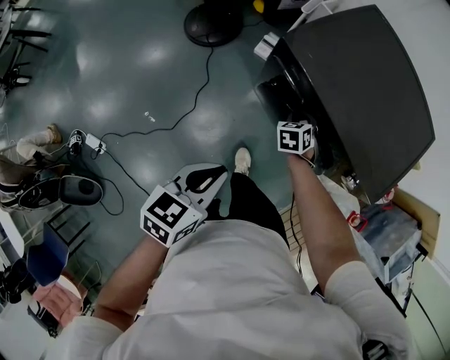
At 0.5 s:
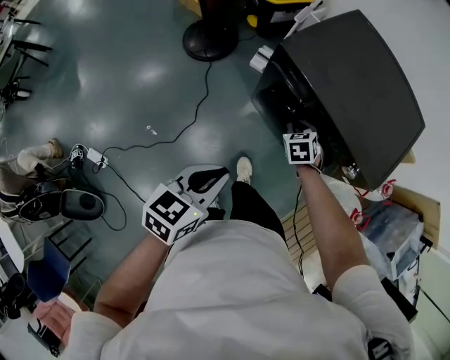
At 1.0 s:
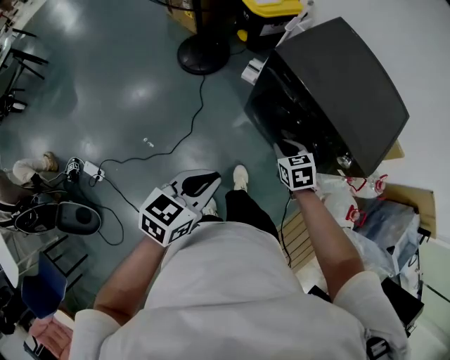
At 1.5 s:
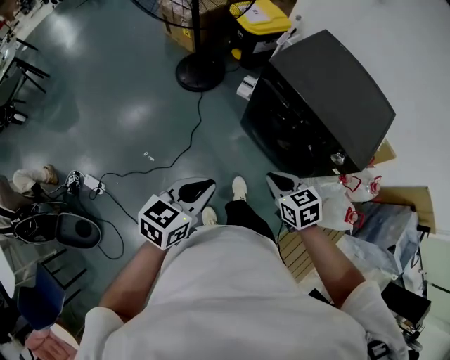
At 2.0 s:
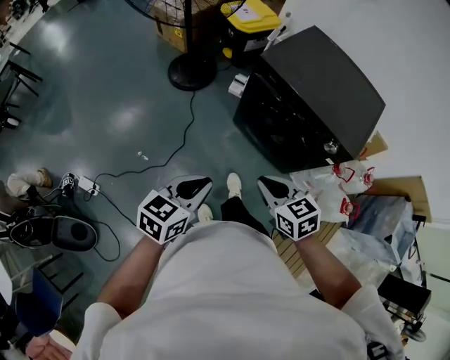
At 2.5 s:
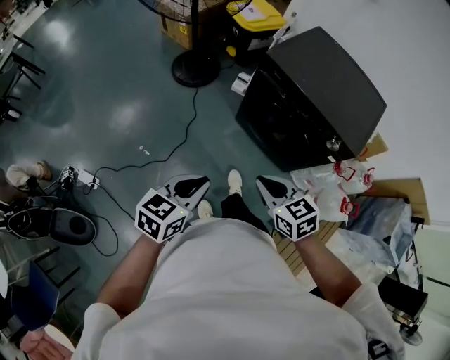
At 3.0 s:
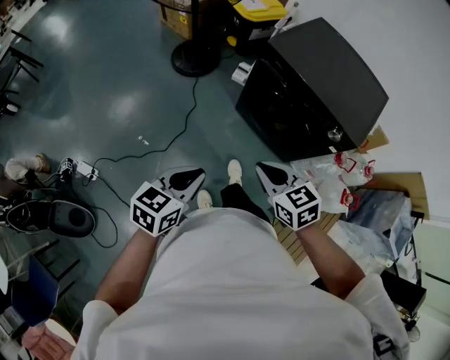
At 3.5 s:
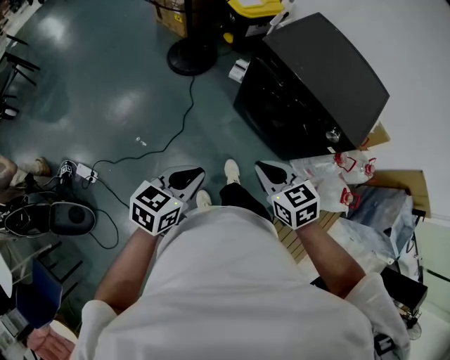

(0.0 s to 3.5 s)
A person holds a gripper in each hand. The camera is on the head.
0.0 s - 2.0 s: The right gripper shifts by about 40 cm, and turns by about 40 degrees; the left gripper moves about 20 cm.
2.0 s - 3.5 s: The grippers stay close to where they were, moving slightly.

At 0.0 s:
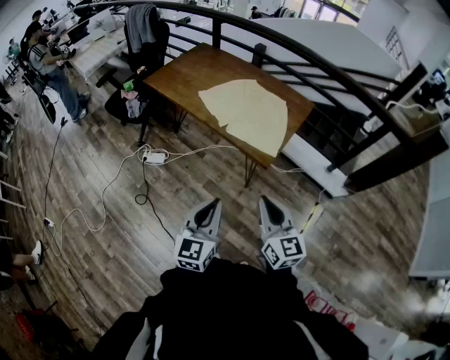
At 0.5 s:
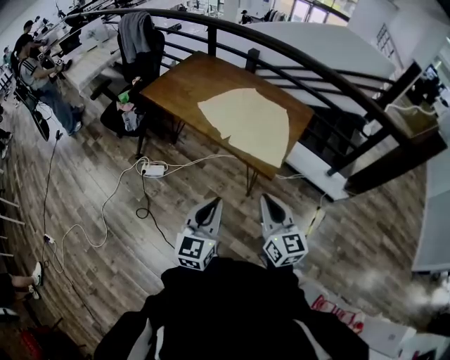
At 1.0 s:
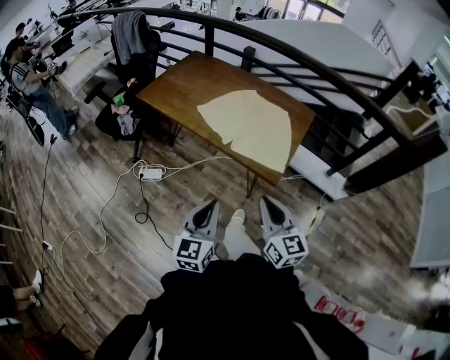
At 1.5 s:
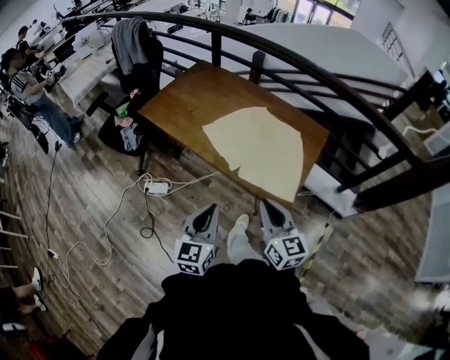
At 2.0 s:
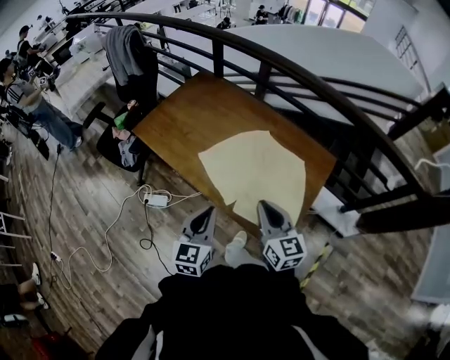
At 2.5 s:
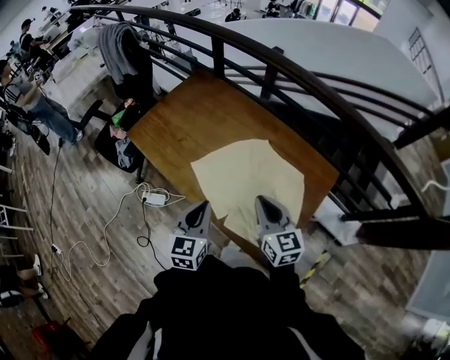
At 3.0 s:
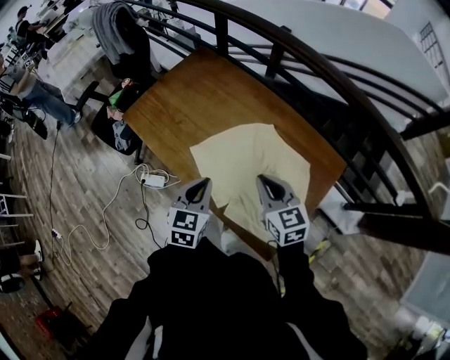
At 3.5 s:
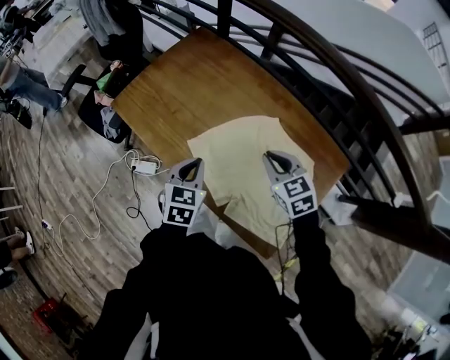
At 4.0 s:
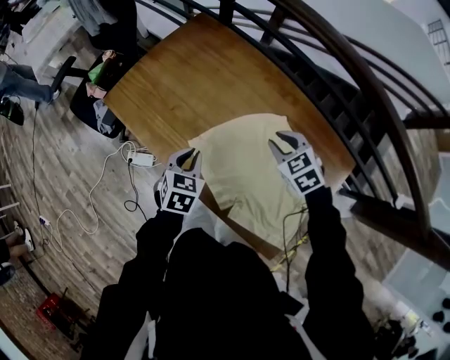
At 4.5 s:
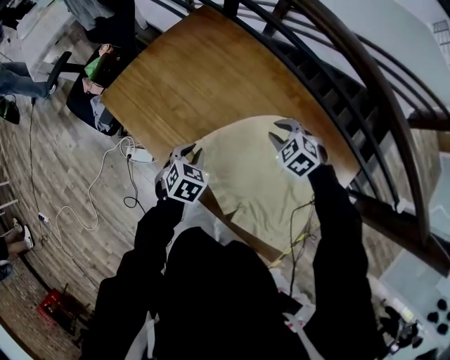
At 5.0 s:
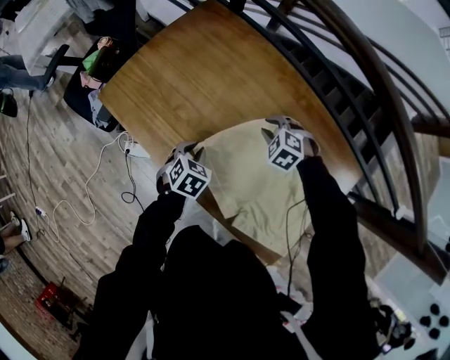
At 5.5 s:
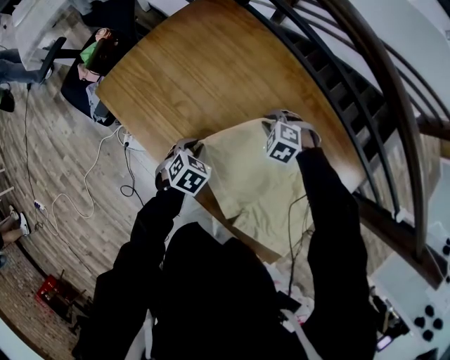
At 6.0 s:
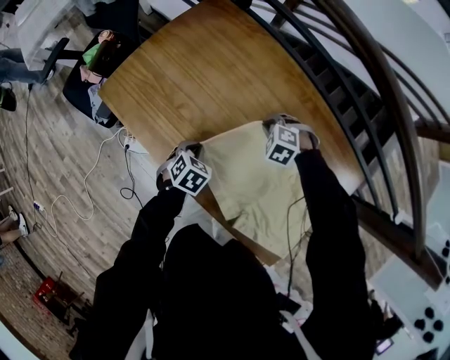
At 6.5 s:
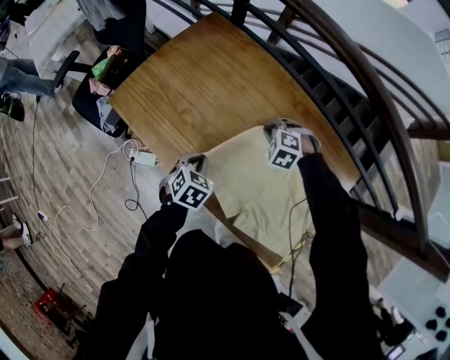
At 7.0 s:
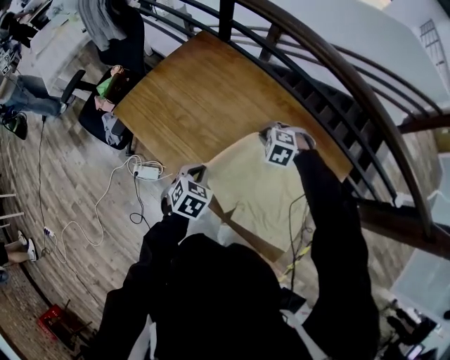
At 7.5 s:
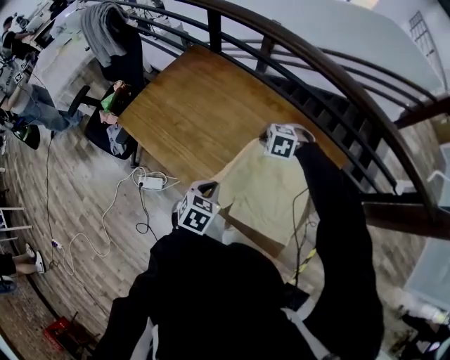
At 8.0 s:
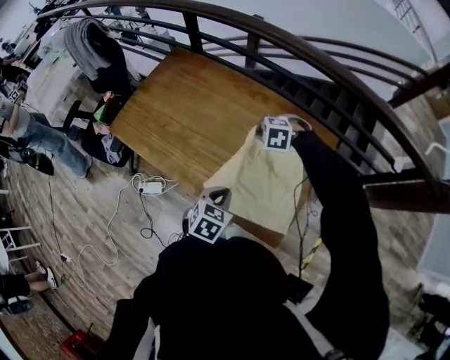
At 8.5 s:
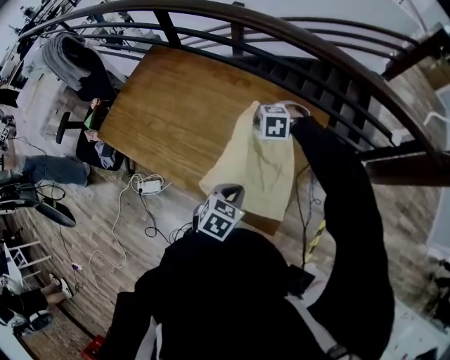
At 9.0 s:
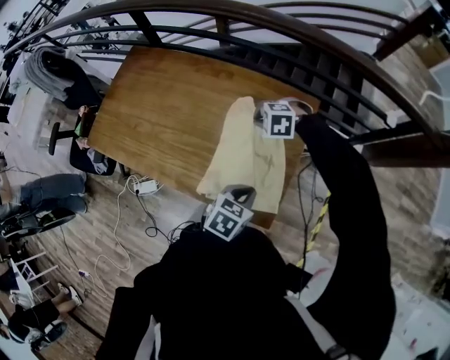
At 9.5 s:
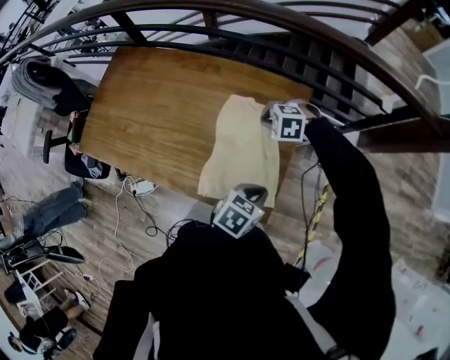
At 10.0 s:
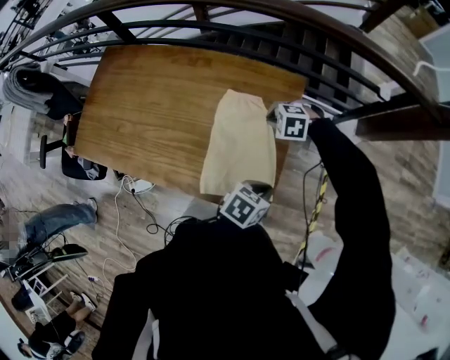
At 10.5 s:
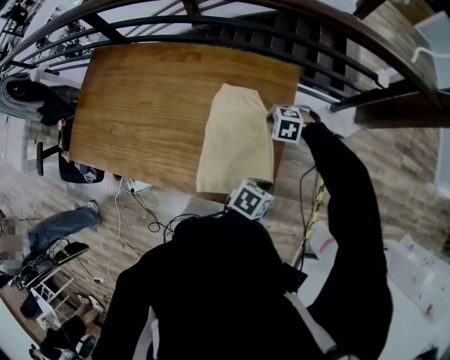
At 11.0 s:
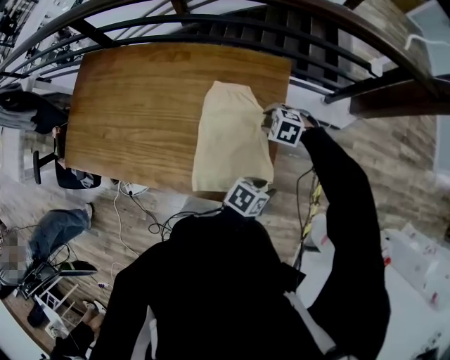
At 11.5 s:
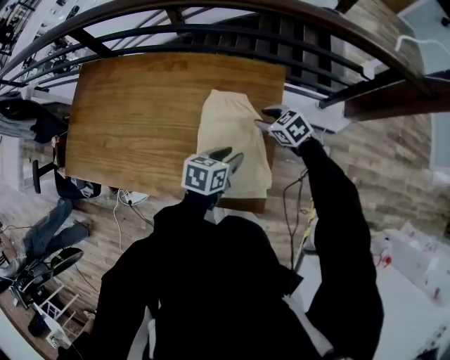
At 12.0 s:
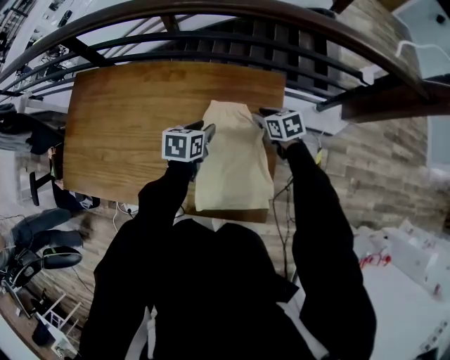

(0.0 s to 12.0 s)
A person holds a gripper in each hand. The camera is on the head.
0.0 s - 2.0 s: Both grippers travel together forward, approximately 40 cm.
2.0 s - 4.0 s: The two grippers go roughly 30 cm forward and downward. The left gripper tips its fingers downward by approximately 30 degrees. Meanwhile the right gripper angles its fingers downward, by some 40 degrees.
4.0 s - 6.0 s: Both grippers move downward, approximately 15 cm. The right gripper changes its angle by about 40 degrees. The left gripper swivels about 20 degrees.
6.0 s - 8.0 s: The right gripper moves approximately 20 cm, while the left gripper ends up about 30 cm from where it was.
8.0 s - 10.0 s: The left gripper changes place by about 25 cm, and swivels approximately 30 degrees, while the right gripper changes place by about 25 cm.
10.0 s - 12.0 s: The left gripper ends up about 30 cm from where it was, and opens. Meanwhile the right gripper shifts by about 10 cm, rotates around the line of its fingers by roughly 70 degrees, clockwise from behind, and opens.

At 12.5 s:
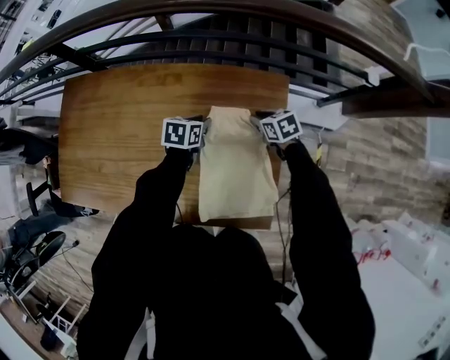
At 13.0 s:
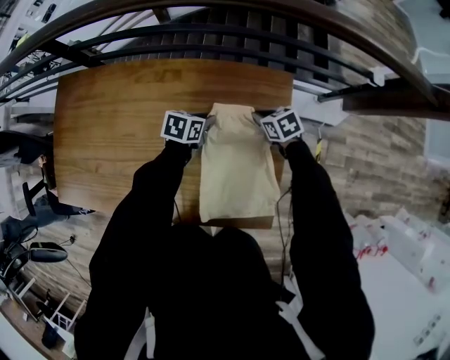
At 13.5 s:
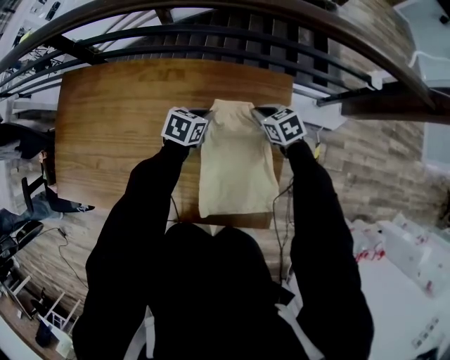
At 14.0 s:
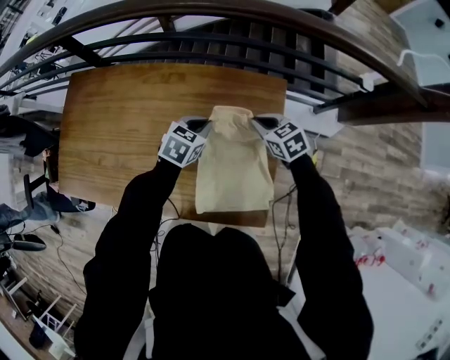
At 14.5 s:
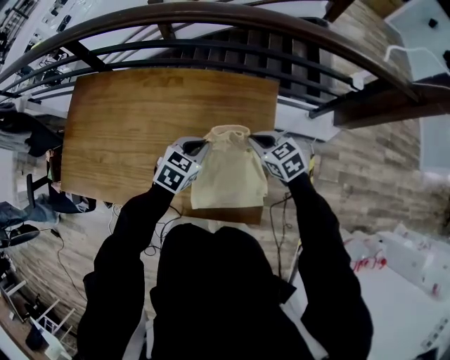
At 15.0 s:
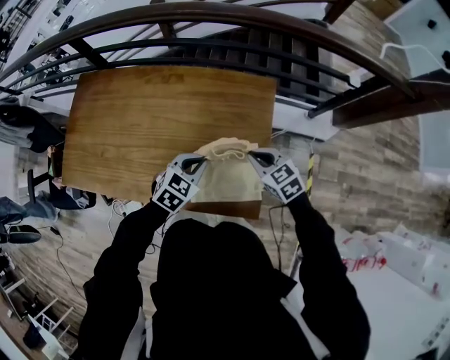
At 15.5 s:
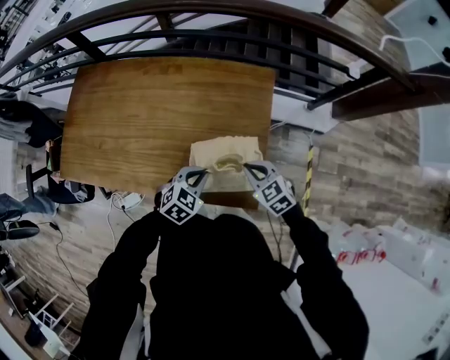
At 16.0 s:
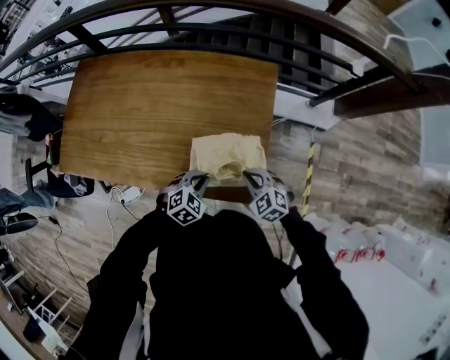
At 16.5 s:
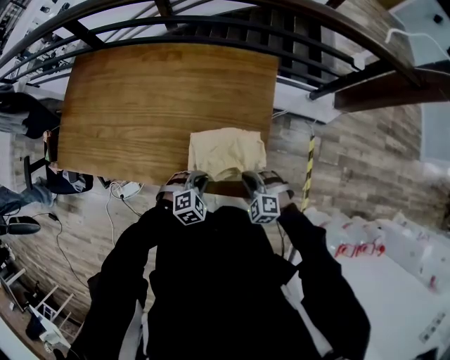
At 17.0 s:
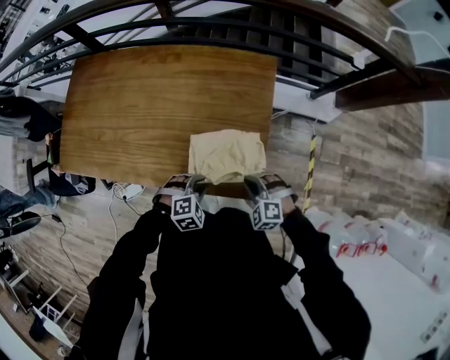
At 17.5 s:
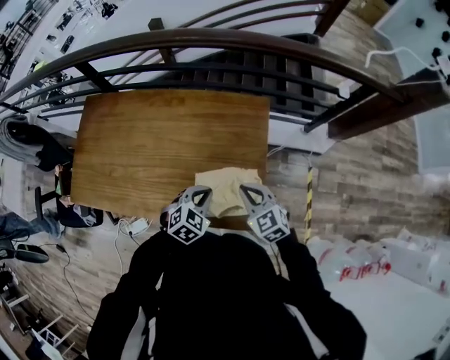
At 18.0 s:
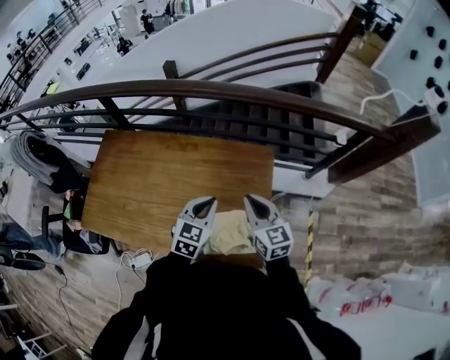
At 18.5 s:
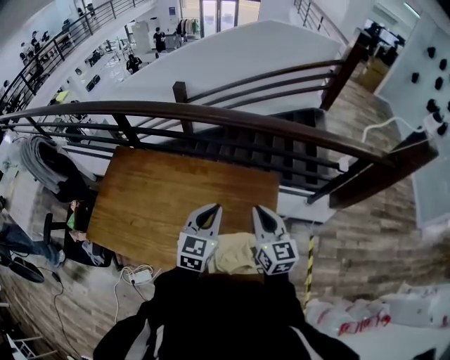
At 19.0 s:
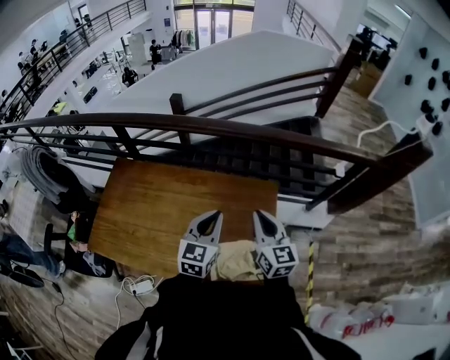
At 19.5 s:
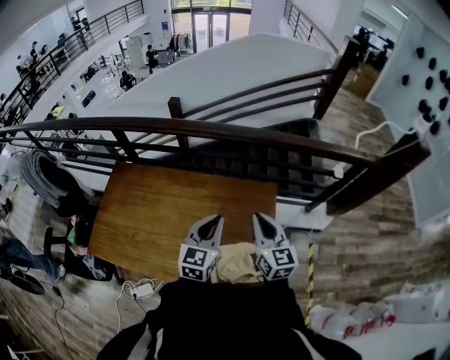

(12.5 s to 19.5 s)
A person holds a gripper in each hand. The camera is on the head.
12.5 s - 14.5 s: Both grippers move backward and upward, some 15 cm. The left gripper rotates about 30 degrees, and closes its fingers.
14.5 s - 16.0 s: The right gripper is displaced backward by about 20 cm, and turns by approximately 20 degrees. The left gripper travels backward and downward by some 20 cm, and turns by roughly 20 degrees.
16.0 s - 17.5 s: Both grippers travel together upward and forward, approximately 15 cm.
17.5 s - 19.5 s: Both grippers move upward and forward, some 25 cm. The right gripper turns by about 40 degrees. Meanwhile the left gripper points its fingers roughly 40 degrees further upward.

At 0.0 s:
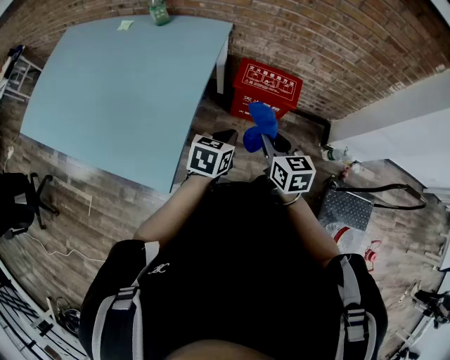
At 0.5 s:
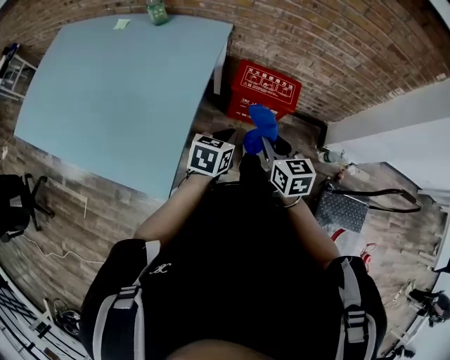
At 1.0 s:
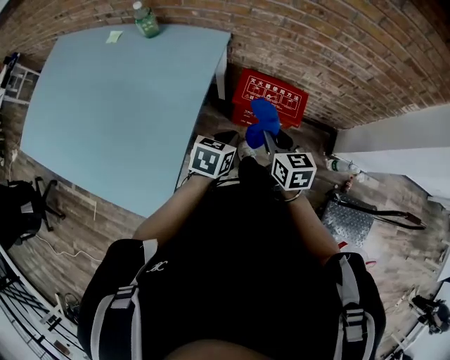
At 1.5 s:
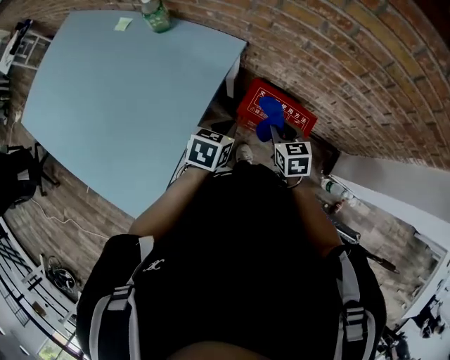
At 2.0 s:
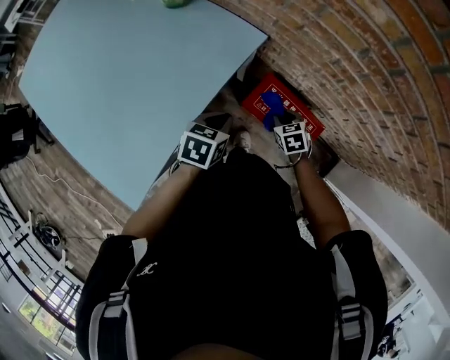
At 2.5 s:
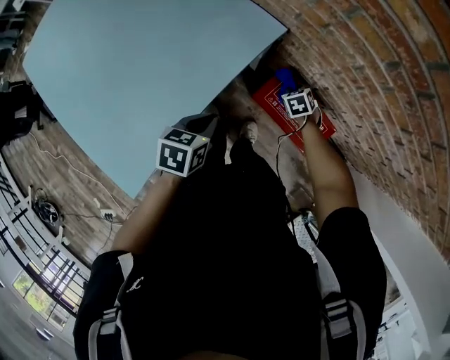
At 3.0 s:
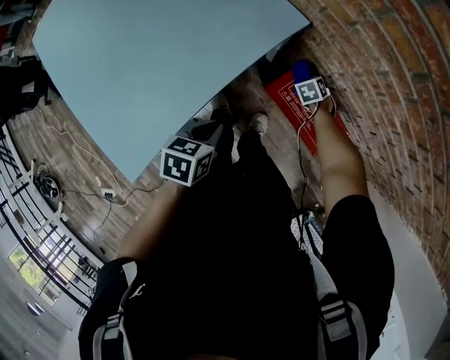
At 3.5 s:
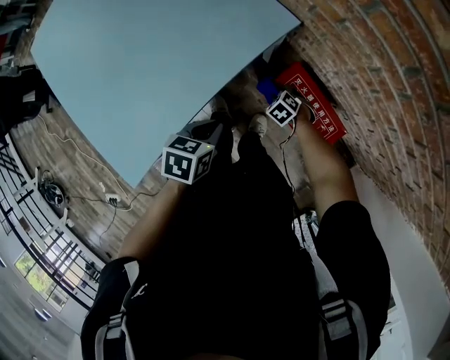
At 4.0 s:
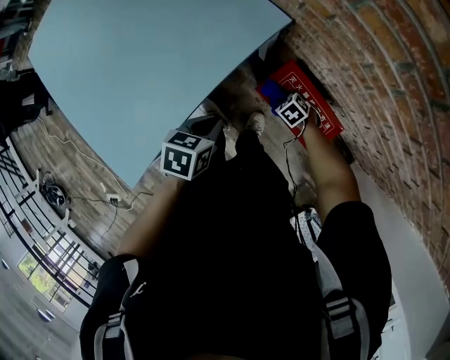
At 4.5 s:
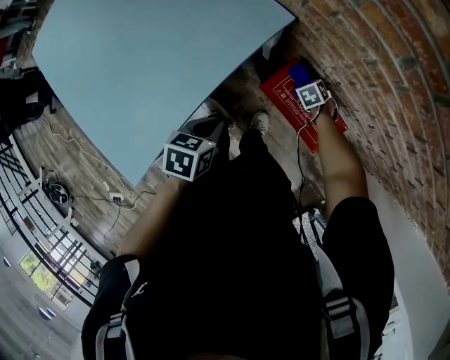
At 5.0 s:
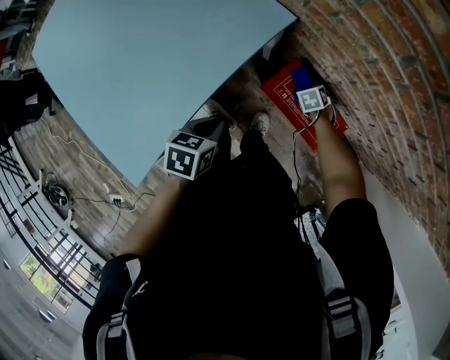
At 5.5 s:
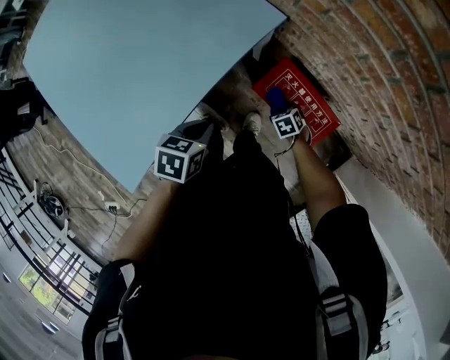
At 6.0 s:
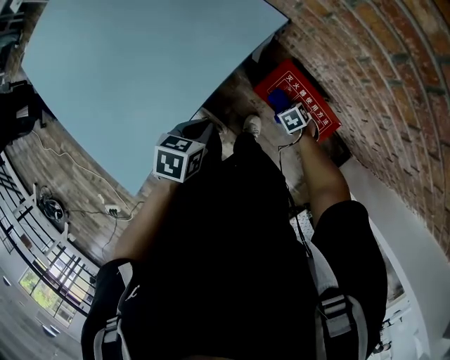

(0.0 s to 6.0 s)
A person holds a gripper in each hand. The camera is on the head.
0.0 s - 2.0 s: The right gripper moves forward and downward, approximately 50 cm, and tips its fingers downward by approximately 30 degrees. Meanwhile the left gripper shifts approximately 30 cm forward, and rotates approximately 20 degrees.
2.0 s - 4.0 s: The right gripper moves downward, roughly 15 cm, and turns by about 30 degrees.
